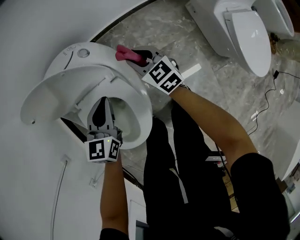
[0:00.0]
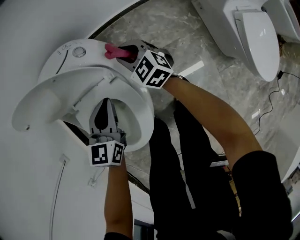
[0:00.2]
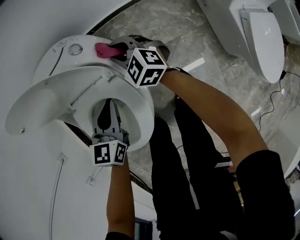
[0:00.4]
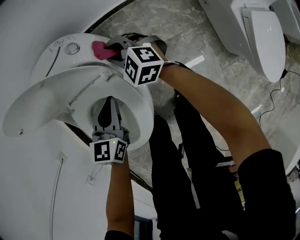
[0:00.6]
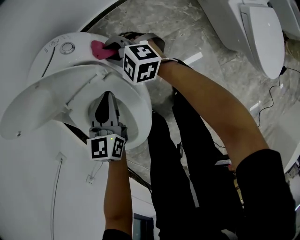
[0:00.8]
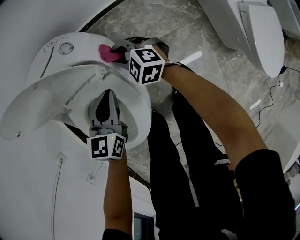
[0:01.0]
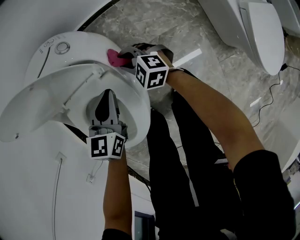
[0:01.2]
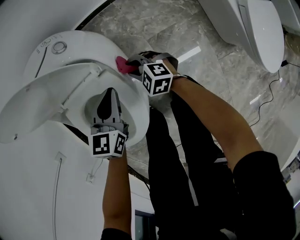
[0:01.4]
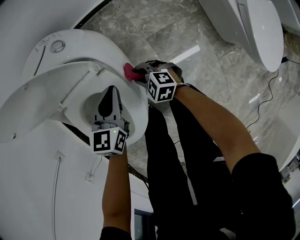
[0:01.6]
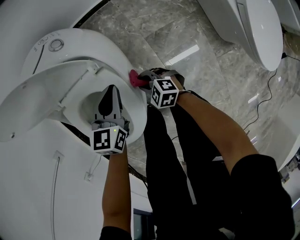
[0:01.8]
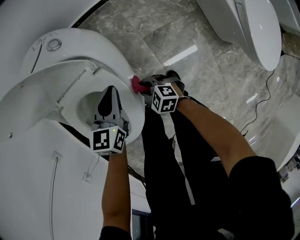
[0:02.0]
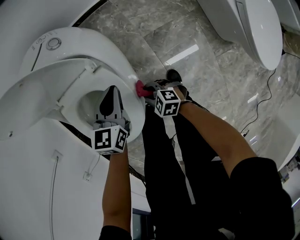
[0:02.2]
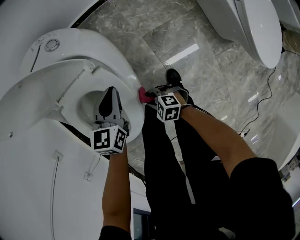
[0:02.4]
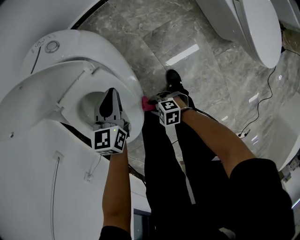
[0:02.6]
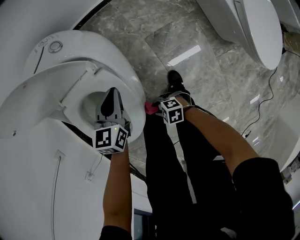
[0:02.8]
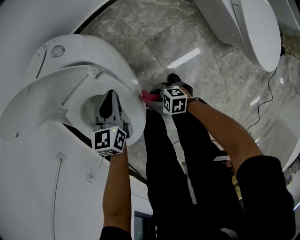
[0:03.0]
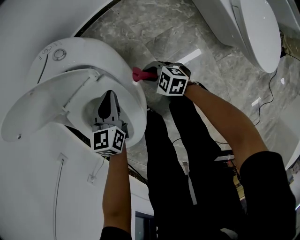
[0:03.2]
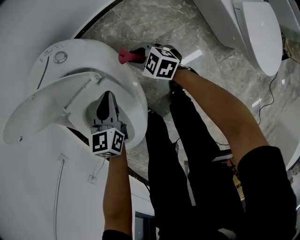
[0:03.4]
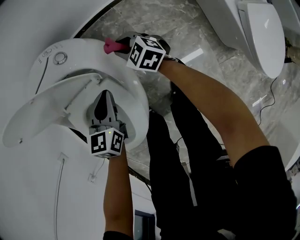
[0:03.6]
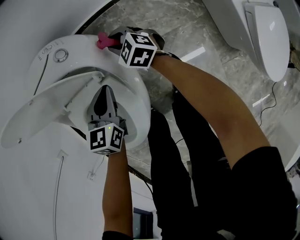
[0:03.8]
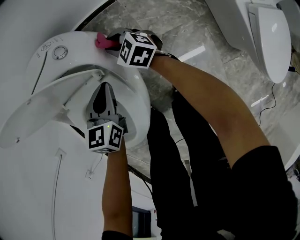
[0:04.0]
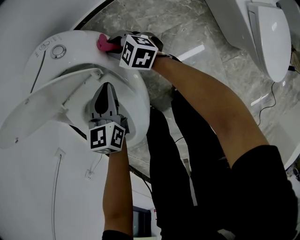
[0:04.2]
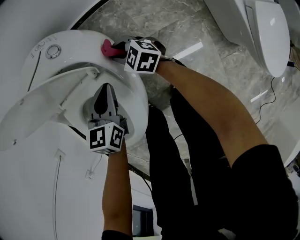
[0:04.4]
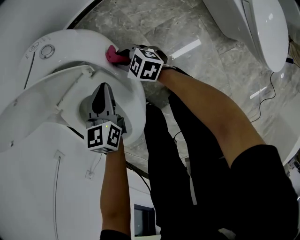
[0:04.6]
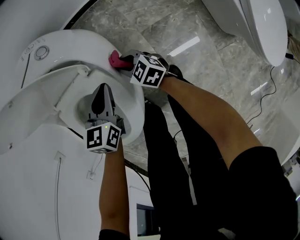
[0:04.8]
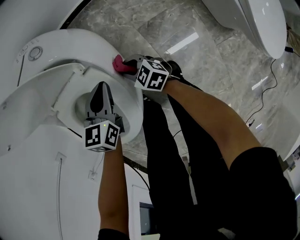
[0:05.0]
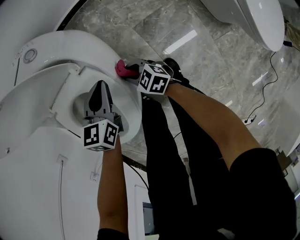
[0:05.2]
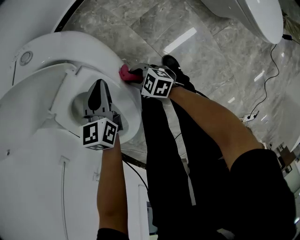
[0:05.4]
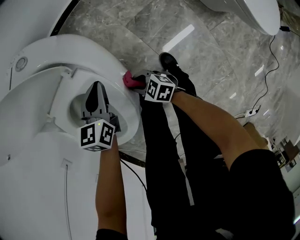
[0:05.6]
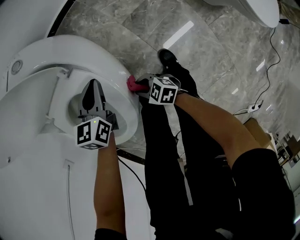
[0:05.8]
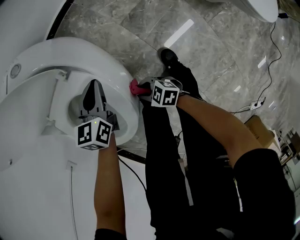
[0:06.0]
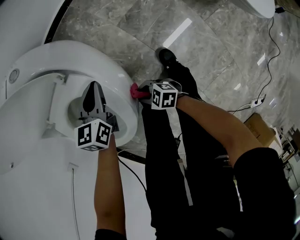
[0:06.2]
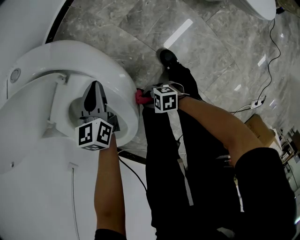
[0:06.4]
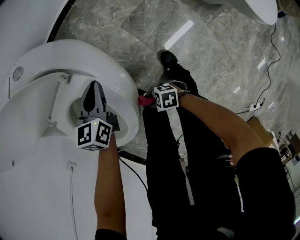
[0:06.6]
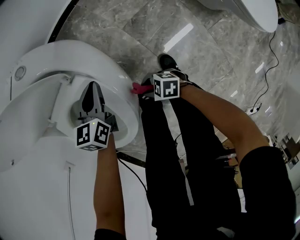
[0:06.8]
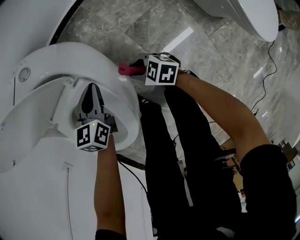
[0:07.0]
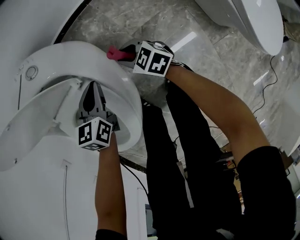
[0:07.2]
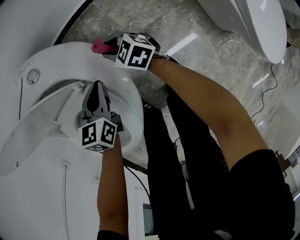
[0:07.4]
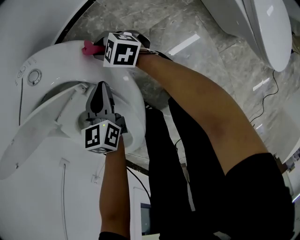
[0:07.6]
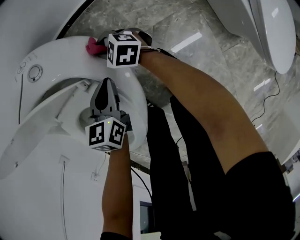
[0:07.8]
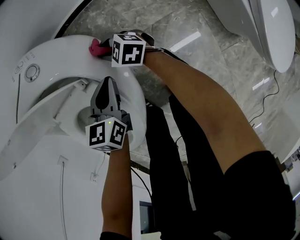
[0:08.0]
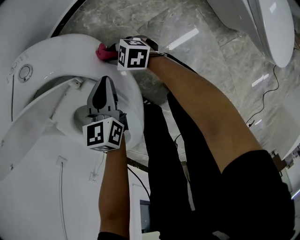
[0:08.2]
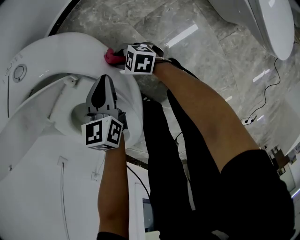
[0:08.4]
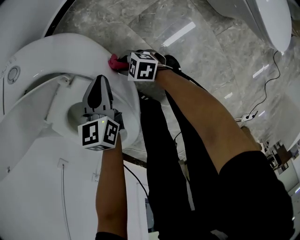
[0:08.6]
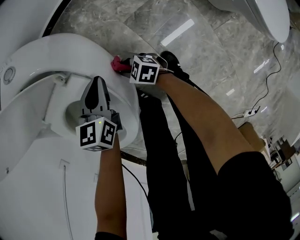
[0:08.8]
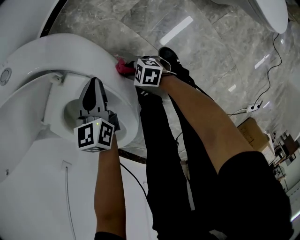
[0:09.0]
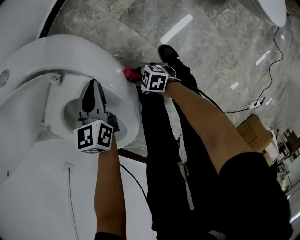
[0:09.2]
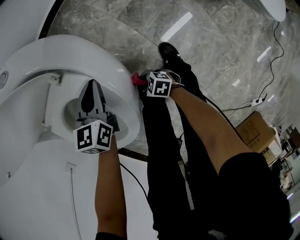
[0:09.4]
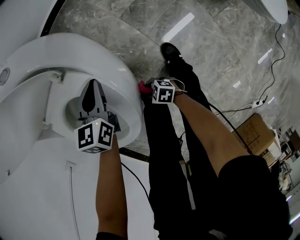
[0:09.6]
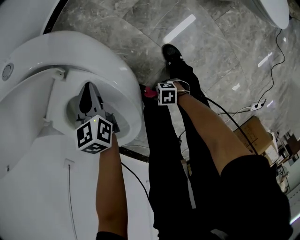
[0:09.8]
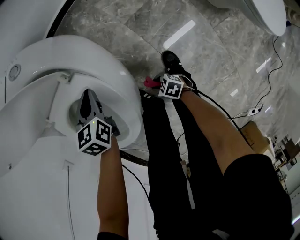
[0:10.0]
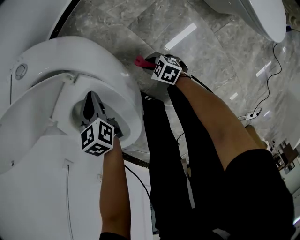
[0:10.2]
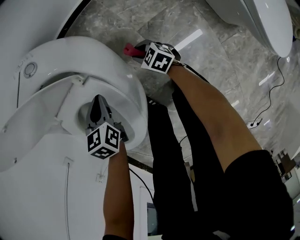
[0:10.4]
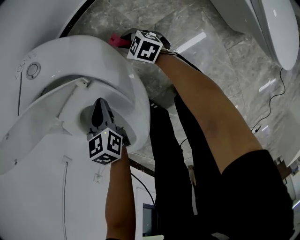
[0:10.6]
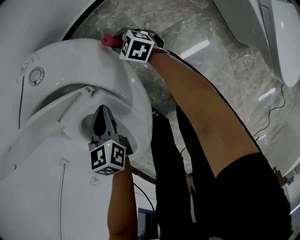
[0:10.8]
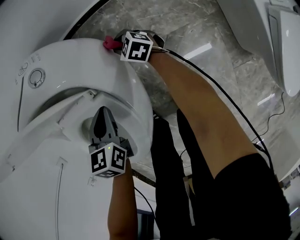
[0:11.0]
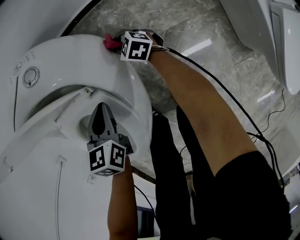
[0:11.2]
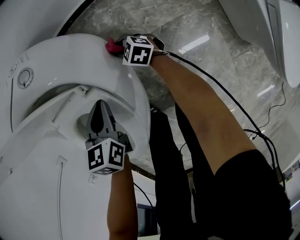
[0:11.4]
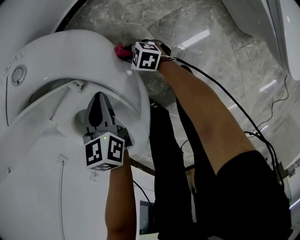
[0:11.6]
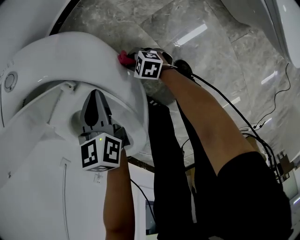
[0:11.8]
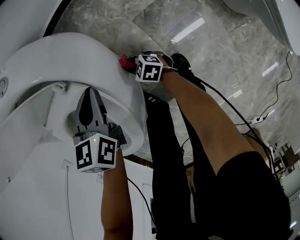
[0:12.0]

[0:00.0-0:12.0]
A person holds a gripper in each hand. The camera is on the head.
0.0 to 1.6 s: The left gripper shifts some 10 cm downward; the right gripper moves downward, backward and to the left, roughly 25 cm, and swivels roughly 40 degrees.
3.0 to 4.4 s: The right gripper shifts some 25 cm forward, and changes its angle by some 20 degrees.
4.4 to 6.0 s: The right gripper is displaced backward by about 30 cm, and changes its angle by about 20 degrees. Meanwhile the left gripper shifts roughly 5 cm backward.
6.0 to 7.6 s: The left gripper moves about 10 cm, while the right gripper changes place by about 35 cm.
7.6 to 9.0 s: The left gripper is displaced backward by roughly 5 cm. The right gripper moves backward and downward, approximately 30 cm.
9.0 to 10.4 s: The left gripper ends up about 5 cm from where it was, and rotates approximately 20 degrees. The right gripper moves some 15 cm.
10.4 to 12.0 s: The right gripper travels to the left and downward by about 15 cm, and reaches some 15 cm forward, then returns. The left gripper moves to the right, about 5 cm.

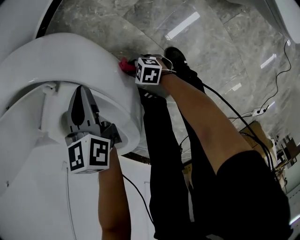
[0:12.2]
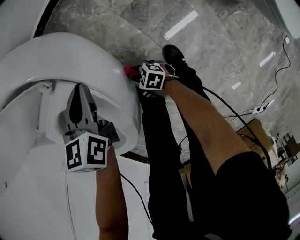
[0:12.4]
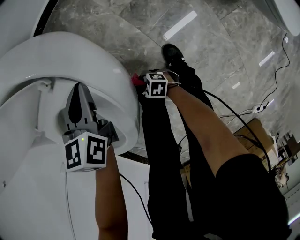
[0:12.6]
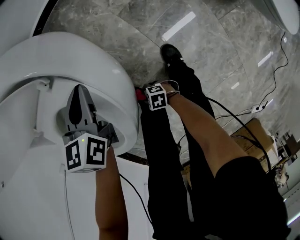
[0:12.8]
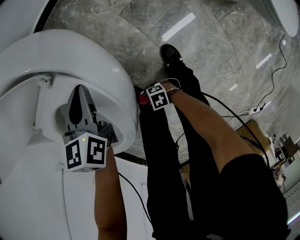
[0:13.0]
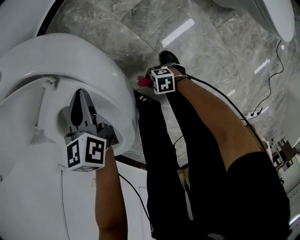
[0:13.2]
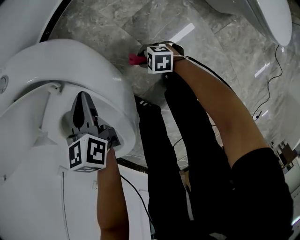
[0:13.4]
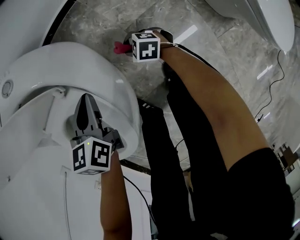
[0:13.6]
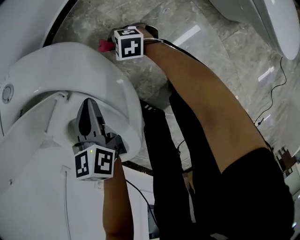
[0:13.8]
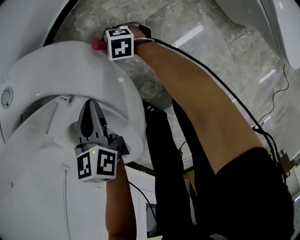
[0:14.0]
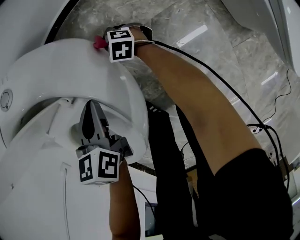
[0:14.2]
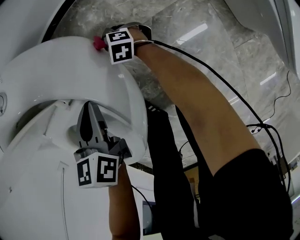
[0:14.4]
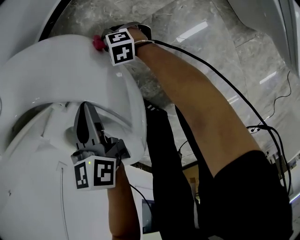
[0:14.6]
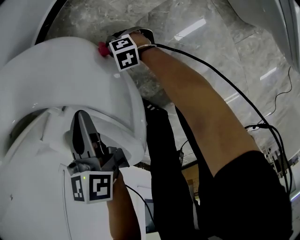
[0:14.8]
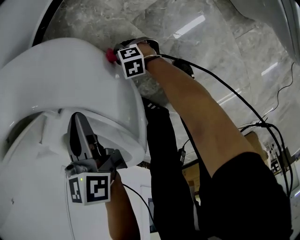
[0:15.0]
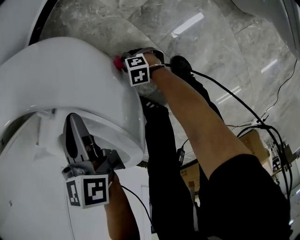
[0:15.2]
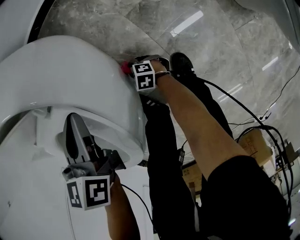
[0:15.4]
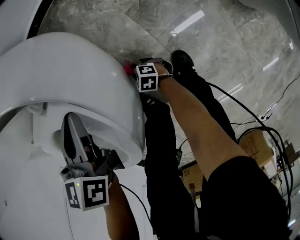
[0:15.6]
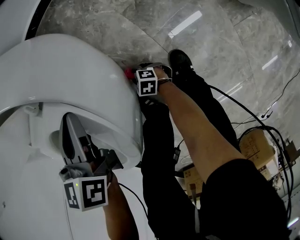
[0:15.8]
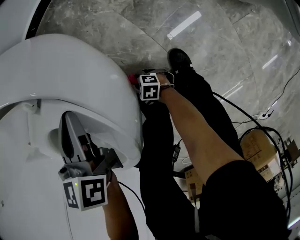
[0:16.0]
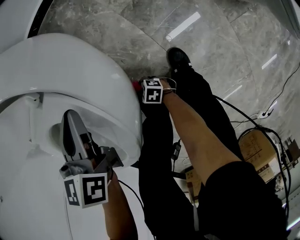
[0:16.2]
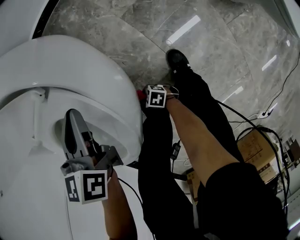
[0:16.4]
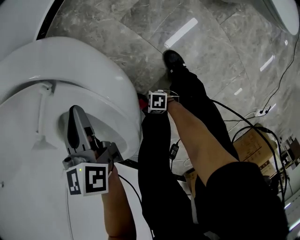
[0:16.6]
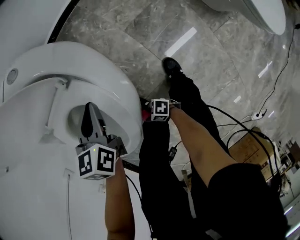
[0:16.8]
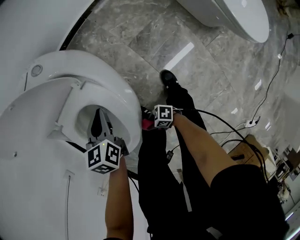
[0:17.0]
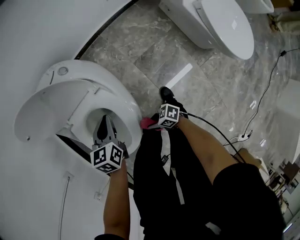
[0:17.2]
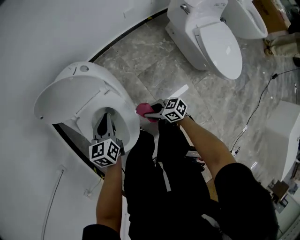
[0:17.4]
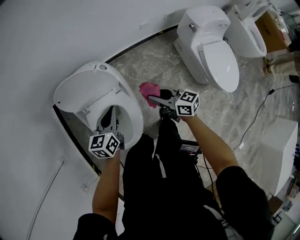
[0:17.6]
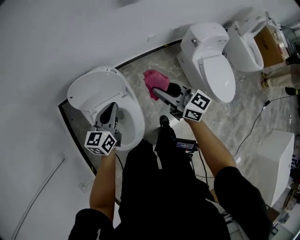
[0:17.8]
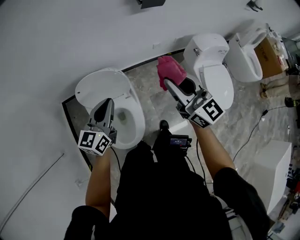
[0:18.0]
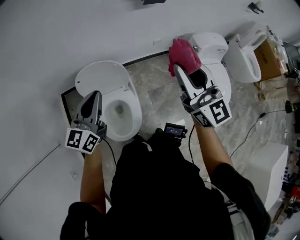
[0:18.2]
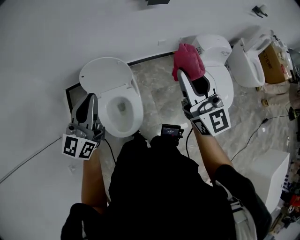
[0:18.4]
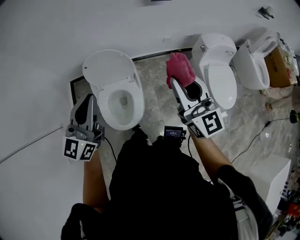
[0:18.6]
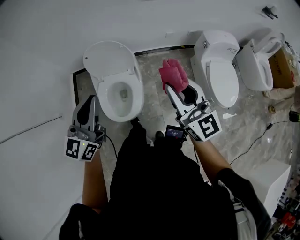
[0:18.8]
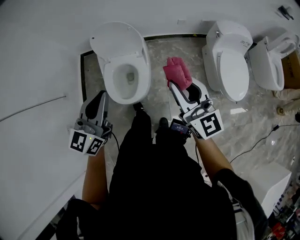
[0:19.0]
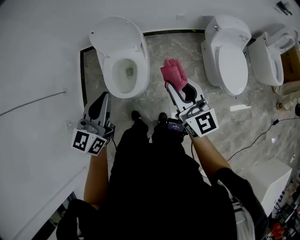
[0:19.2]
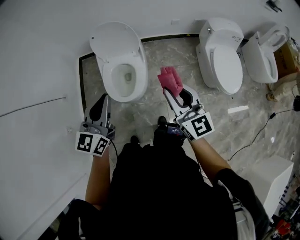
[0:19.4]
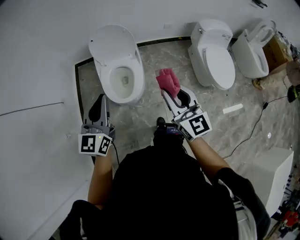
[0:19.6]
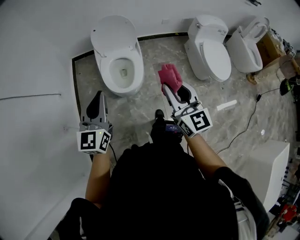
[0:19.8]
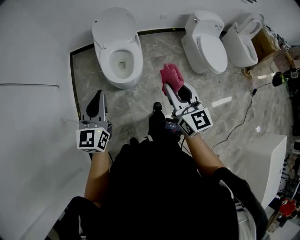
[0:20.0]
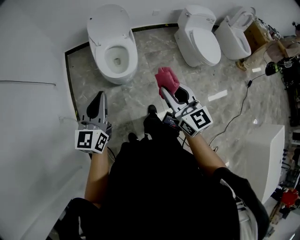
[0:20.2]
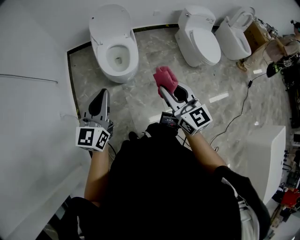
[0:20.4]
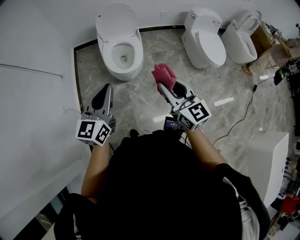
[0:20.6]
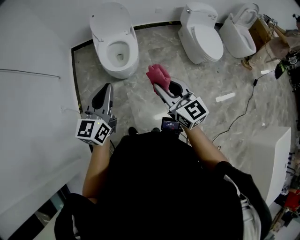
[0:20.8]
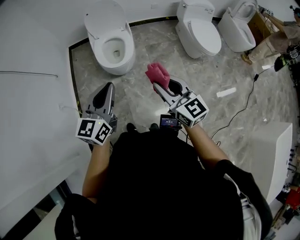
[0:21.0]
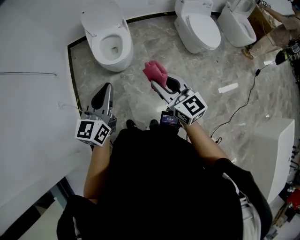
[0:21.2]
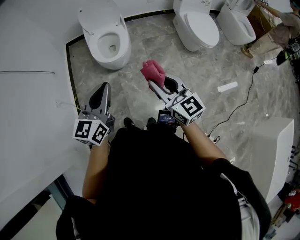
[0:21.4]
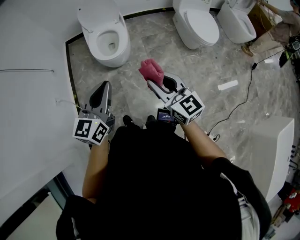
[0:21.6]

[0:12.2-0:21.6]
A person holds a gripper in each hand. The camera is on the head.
12.2 to 13.8 s: The right gripper shifts by some 20 cm.
13.8 to 15.4 s: The right gripper travels to the left, downward and backward by roughly 25 cm.
15.4 to 17.0 s: The left gripper goes some 5 cm upward. Meanwhile the right gripper moves upward, approximately 25 cm, and swivels some 40 degrees.
17.0 to 18.4 s: The grippers both shift upward by roughly 70 cm. The left gripper points its fingers about 50 degrees further upward. Meanwhile the right gripper points its fingers about 30 degrees further upward.
18.4 to 20.0 s: Both grippers move backward, roughly 40 cm.
20.0 to 21.6 s: Both grippers move backward and to the right, about 20 cm.

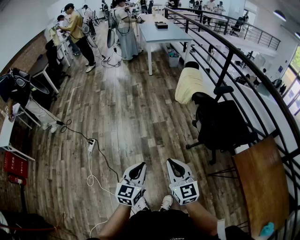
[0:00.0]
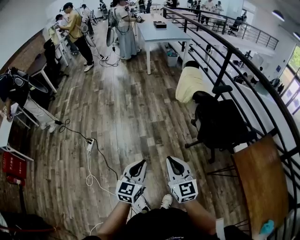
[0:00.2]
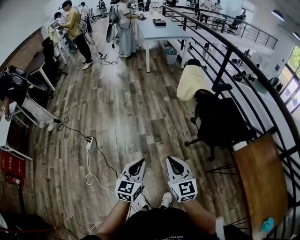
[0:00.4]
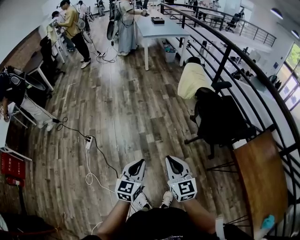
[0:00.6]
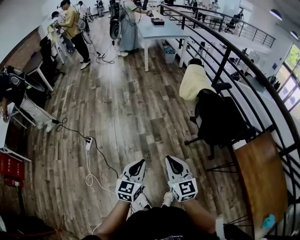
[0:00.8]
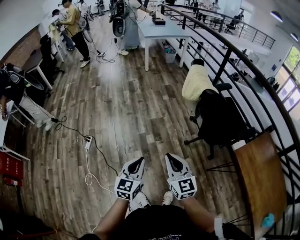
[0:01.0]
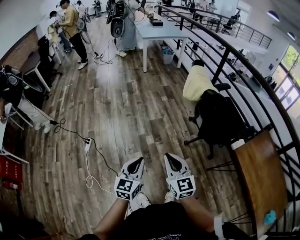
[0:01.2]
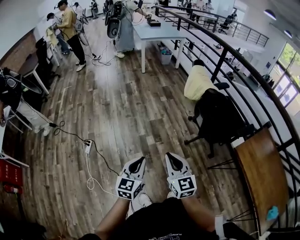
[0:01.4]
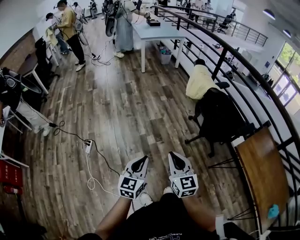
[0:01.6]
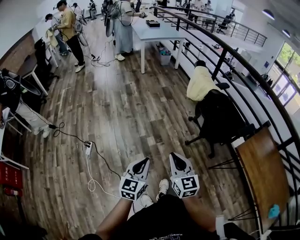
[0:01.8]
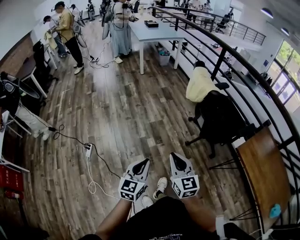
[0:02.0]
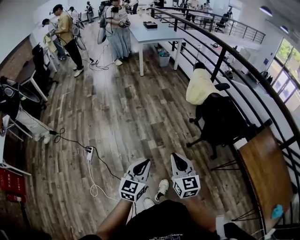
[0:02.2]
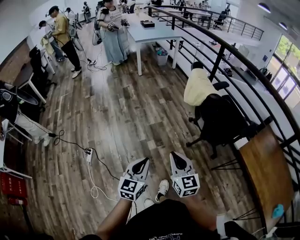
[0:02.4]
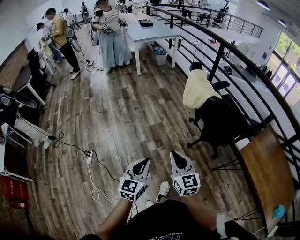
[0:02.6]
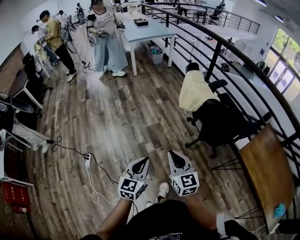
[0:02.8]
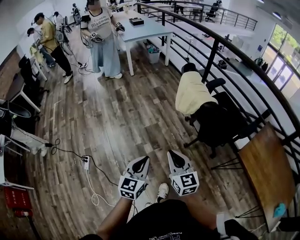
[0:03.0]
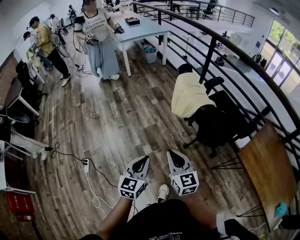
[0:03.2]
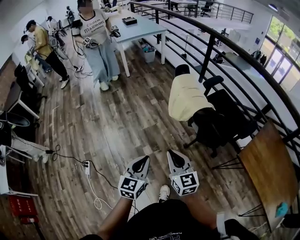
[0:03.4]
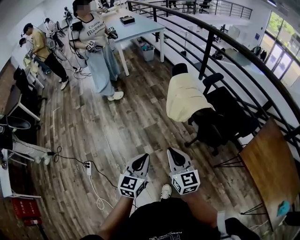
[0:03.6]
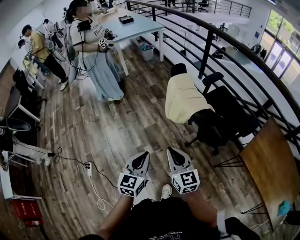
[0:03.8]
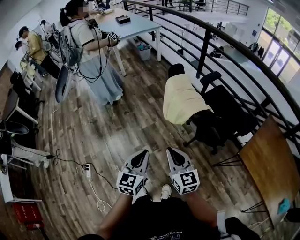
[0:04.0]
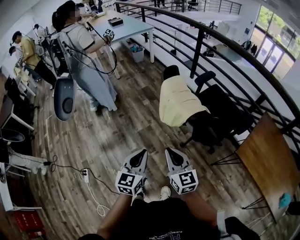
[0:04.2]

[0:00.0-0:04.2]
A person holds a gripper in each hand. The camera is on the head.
0.0 to 1.4 s: Both grippers travel together to the left, about 10 cm.
1.4 to 2.8 s: Both grippers move forward, some 10 cm.
2.8 to 4.2 s: The left gripper heads forward, covering about 15 cm. Meanwhile the right gripper heads forward and to the right, covering some 15 cm.
